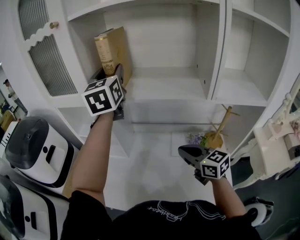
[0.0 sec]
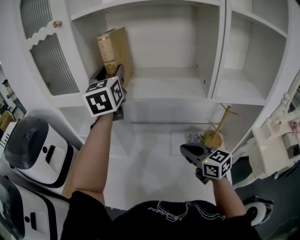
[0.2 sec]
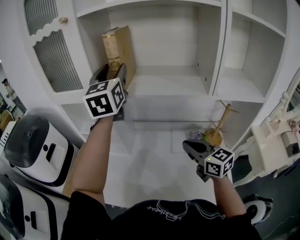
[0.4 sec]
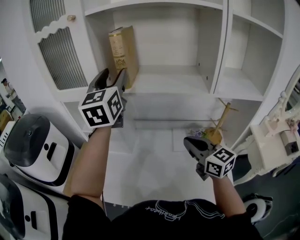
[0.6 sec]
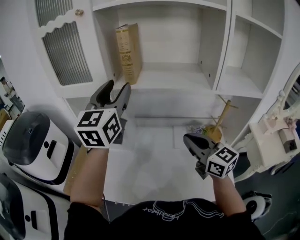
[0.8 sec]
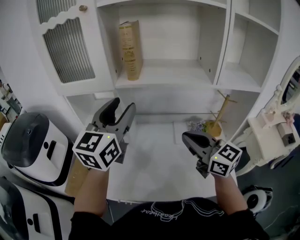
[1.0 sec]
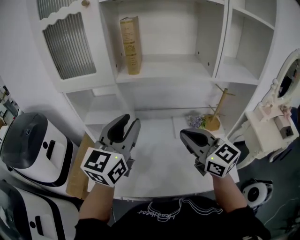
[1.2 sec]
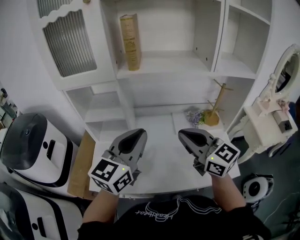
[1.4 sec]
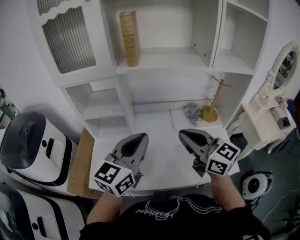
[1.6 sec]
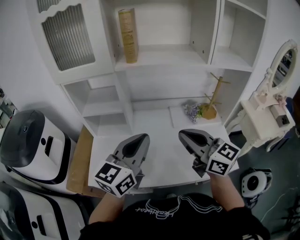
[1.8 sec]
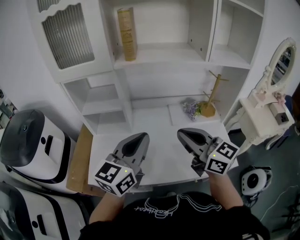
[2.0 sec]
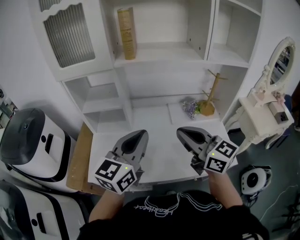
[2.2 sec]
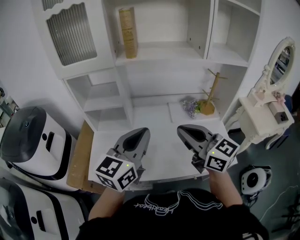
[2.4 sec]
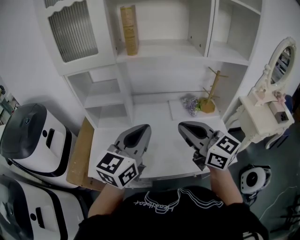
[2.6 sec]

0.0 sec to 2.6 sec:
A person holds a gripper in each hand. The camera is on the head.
0.0 sec to 1.2 sec: The left gripper moves backward and downward, some 25 cm, and changes its angle by approximately 30 degrees. The right gripper is displaced to the left, upward and backward by roughly 15 cm.
1.2 sec to 2.6 sec: The left gripper goes approximately 10 cm backward and downward, and closes up. The right gripper heads backward, covering some 10 cm.

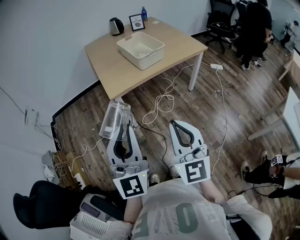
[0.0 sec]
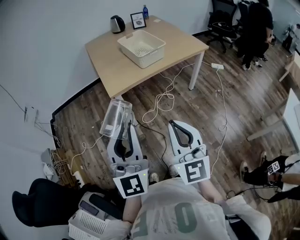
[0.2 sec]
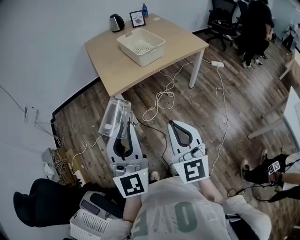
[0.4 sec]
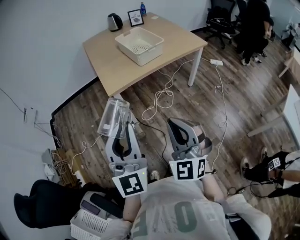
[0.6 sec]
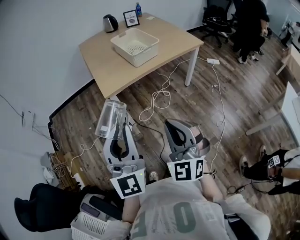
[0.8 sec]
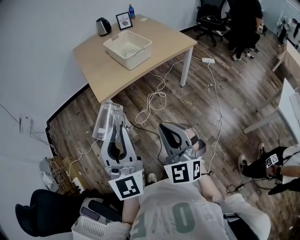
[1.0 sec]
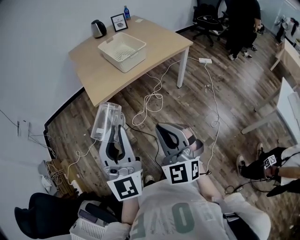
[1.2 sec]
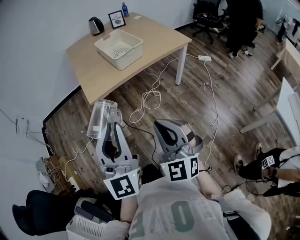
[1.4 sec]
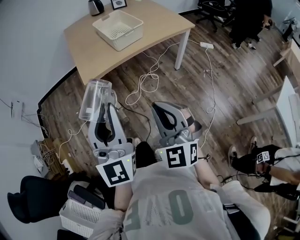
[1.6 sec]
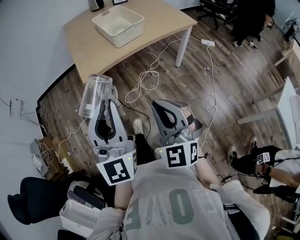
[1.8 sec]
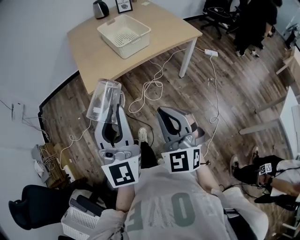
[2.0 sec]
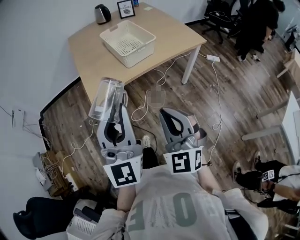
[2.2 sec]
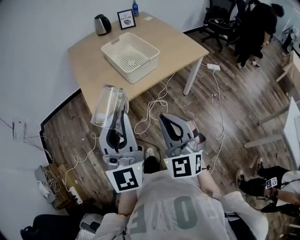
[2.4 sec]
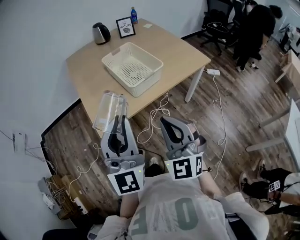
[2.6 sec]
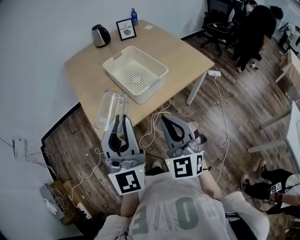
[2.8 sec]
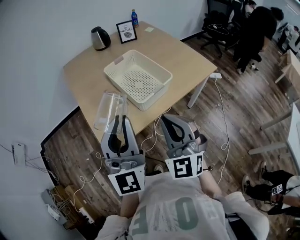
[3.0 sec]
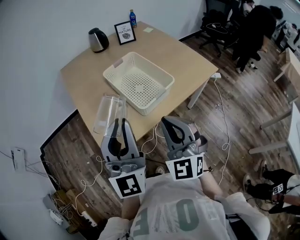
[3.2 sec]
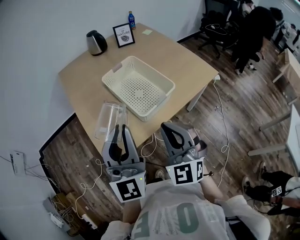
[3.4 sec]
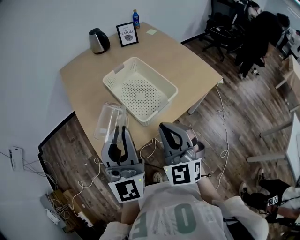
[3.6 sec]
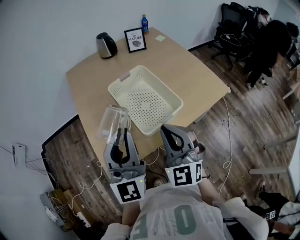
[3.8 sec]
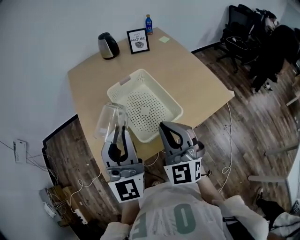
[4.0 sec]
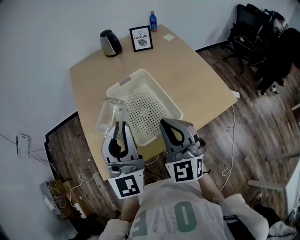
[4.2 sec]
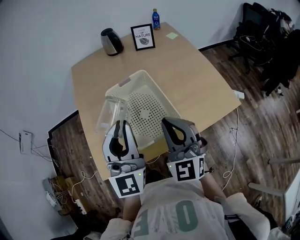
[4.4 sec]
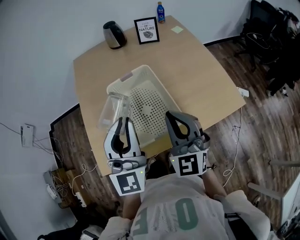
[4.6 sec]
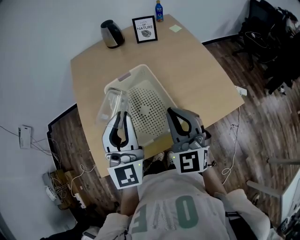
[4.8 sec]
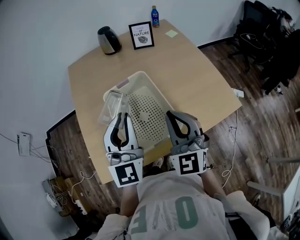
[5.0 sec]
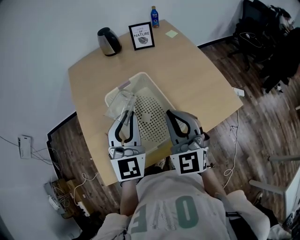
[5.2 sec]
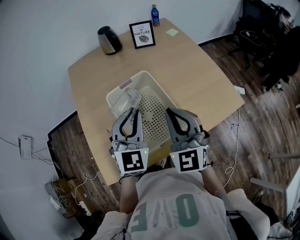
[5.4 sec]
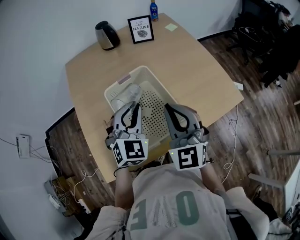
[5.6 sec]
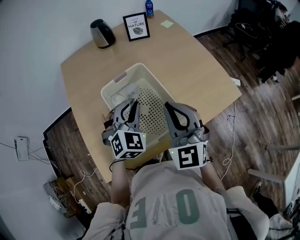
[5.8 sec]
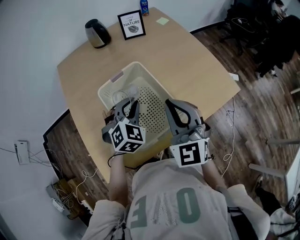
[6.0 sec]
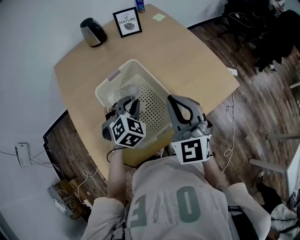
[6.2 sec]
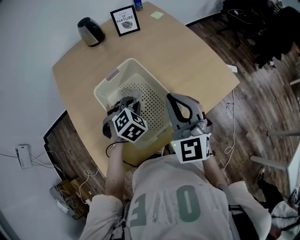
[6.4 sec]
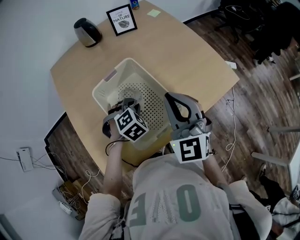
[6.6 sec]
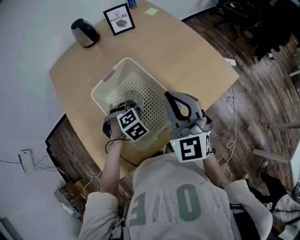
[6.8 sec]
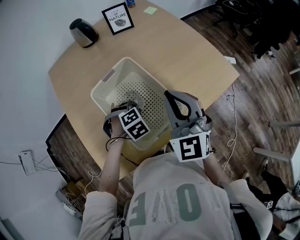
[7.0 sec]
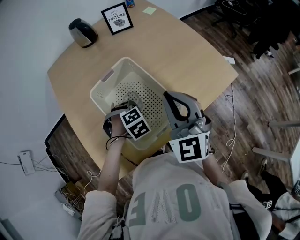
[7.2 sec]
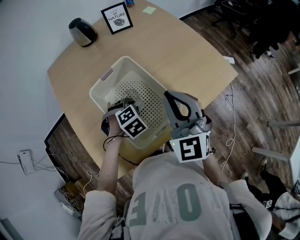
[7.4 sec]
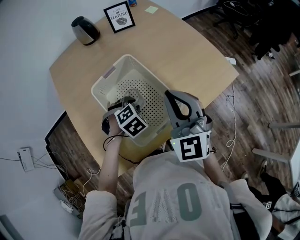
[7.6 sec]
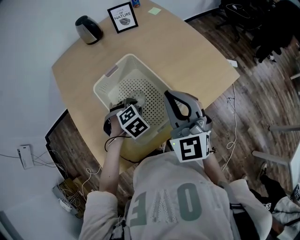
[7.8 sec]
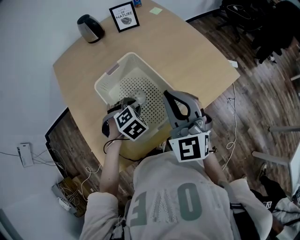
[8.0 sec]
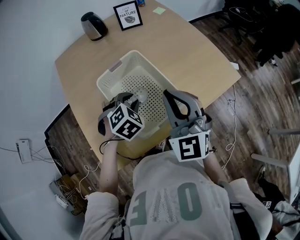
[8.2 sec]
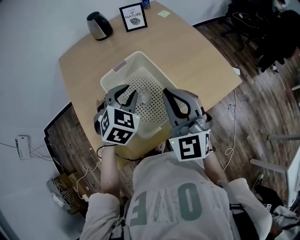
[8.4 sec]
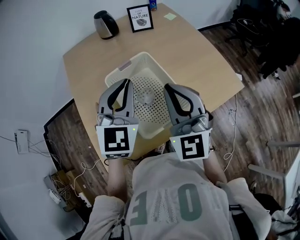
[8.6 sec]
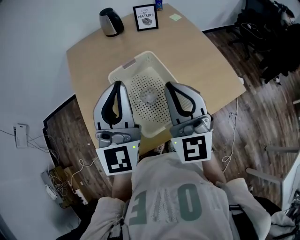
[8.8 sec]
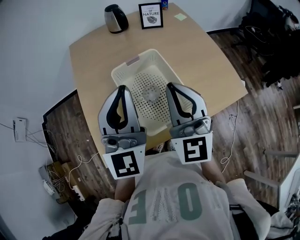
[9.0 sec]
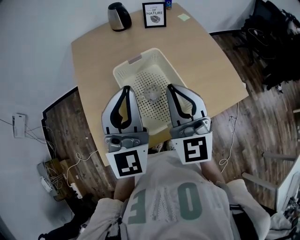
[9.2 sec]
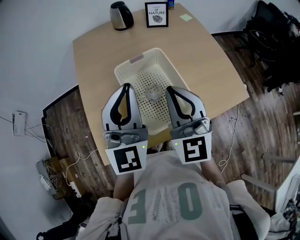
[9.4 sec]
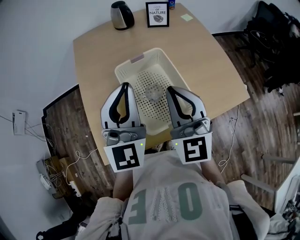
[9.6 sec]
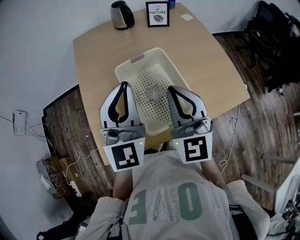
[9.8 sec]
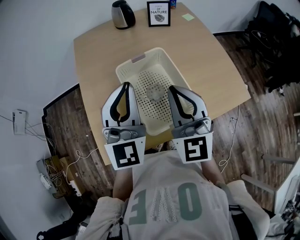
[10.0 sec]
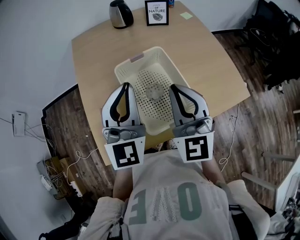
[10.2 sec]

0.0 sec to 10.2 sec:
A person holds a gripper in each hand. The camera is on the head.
0.0 sec to 1.4 sec: The two grippers go about 5 cm to the right. The right gripper turns by about 20 degrees.
1.4 sec to 3.0 sec: The grippers both shift forward by roughly 40 cm.
3.0 sec to 4.4 sec: Both grippers travel together forward, about 25 cm.
4.4 sec to 5.8 sec: The right gripper goes some 5 cm forward. The left gripper is displaced downward and forward by some 20 cm, and points its fingers about 40 degrees further downward.
5.8 sec to 7.2 sec: The left gripper moves downward, some 15 cm, and angles its fingers downward, by some 50 degrees.
7.2 sec to 8.8 sec: The right gripper is displaced upward and to the left by approximately 10 cm. The left gripper goes approximately 35 cm upward, and tips its fingers upward by roughly 90 degrees.
8.8 sec to 10.2 sec: The left gripper moves roughly 5 cm.

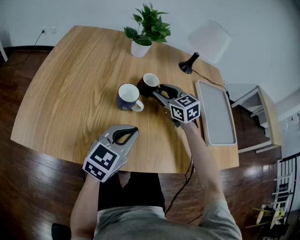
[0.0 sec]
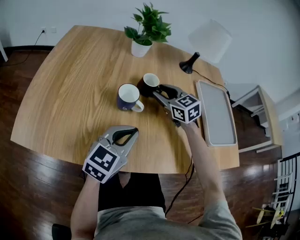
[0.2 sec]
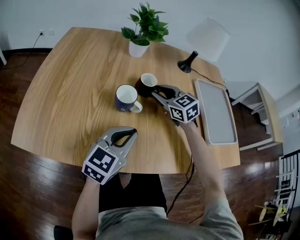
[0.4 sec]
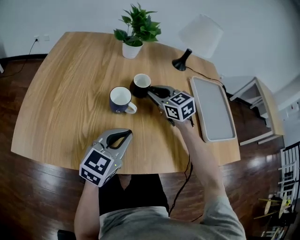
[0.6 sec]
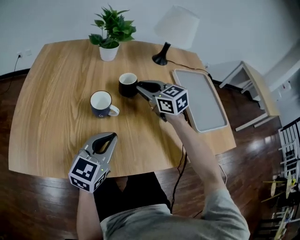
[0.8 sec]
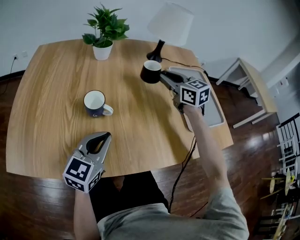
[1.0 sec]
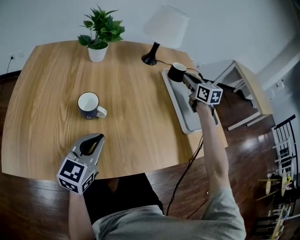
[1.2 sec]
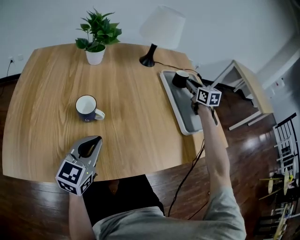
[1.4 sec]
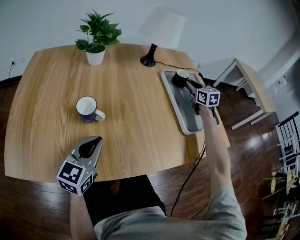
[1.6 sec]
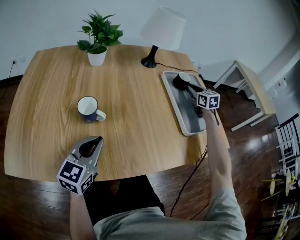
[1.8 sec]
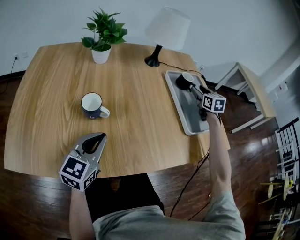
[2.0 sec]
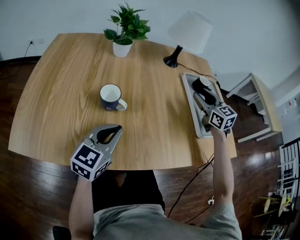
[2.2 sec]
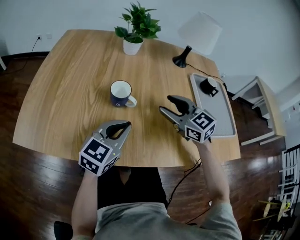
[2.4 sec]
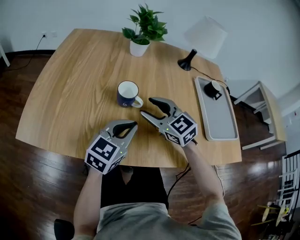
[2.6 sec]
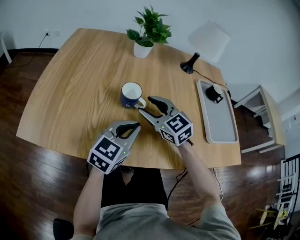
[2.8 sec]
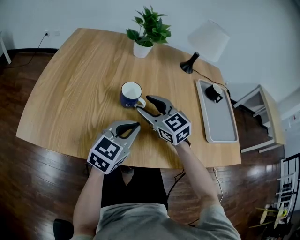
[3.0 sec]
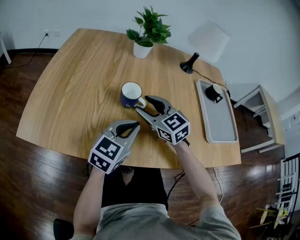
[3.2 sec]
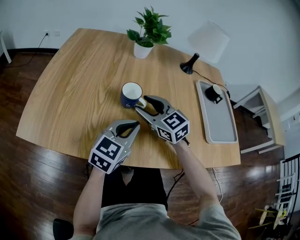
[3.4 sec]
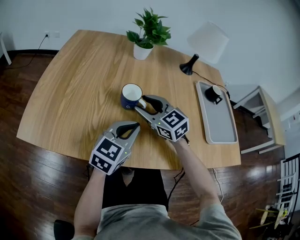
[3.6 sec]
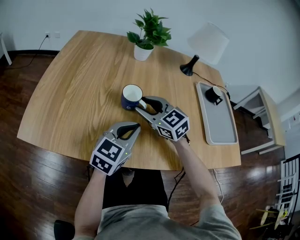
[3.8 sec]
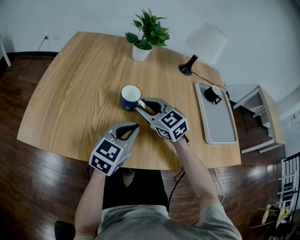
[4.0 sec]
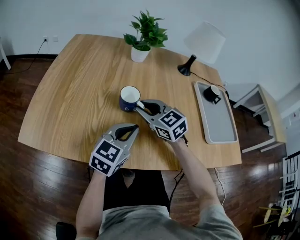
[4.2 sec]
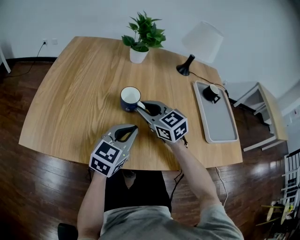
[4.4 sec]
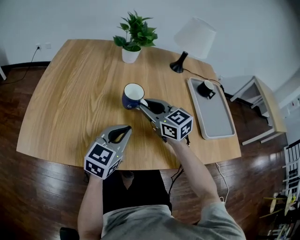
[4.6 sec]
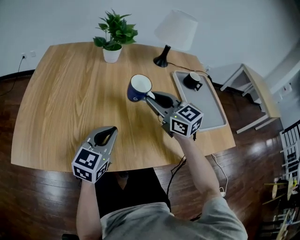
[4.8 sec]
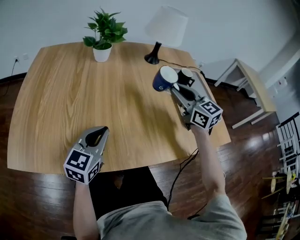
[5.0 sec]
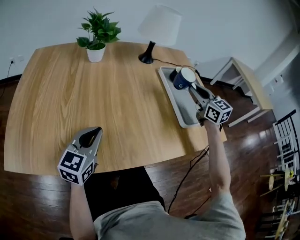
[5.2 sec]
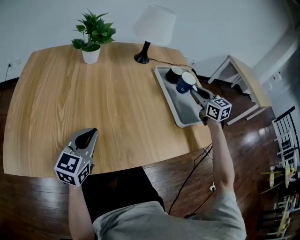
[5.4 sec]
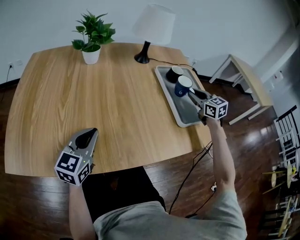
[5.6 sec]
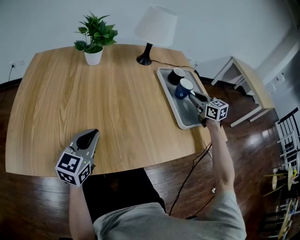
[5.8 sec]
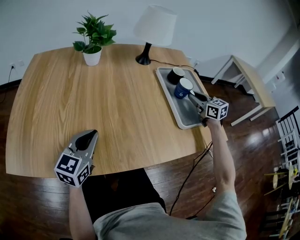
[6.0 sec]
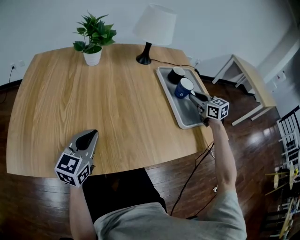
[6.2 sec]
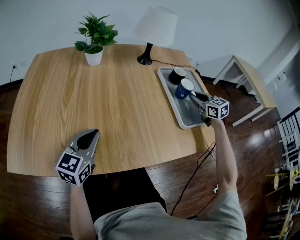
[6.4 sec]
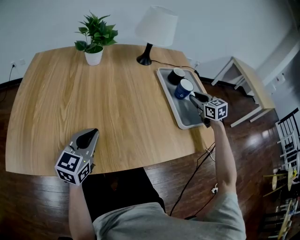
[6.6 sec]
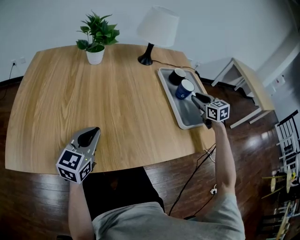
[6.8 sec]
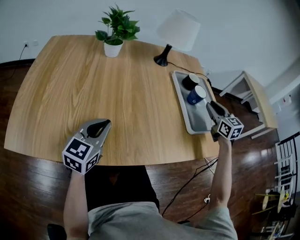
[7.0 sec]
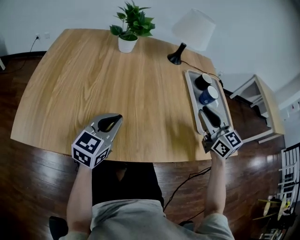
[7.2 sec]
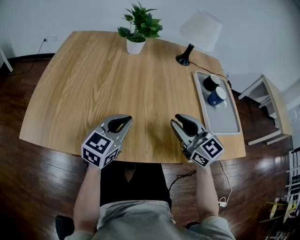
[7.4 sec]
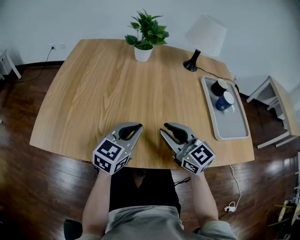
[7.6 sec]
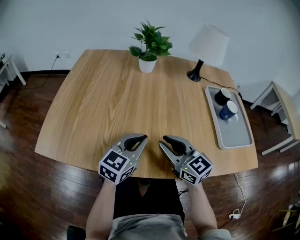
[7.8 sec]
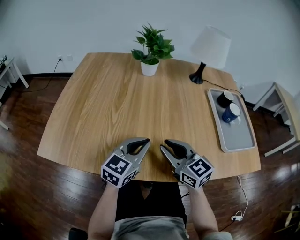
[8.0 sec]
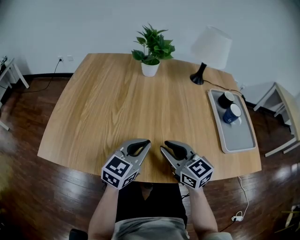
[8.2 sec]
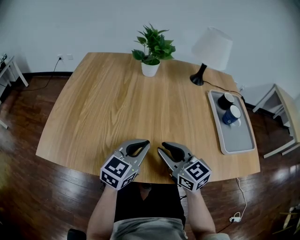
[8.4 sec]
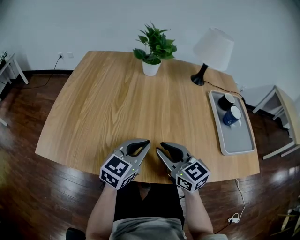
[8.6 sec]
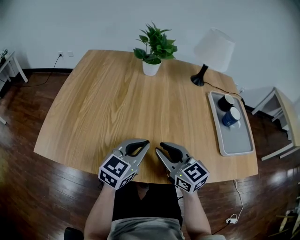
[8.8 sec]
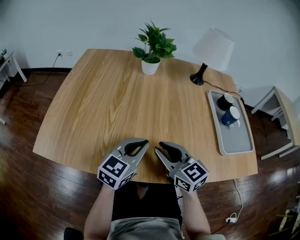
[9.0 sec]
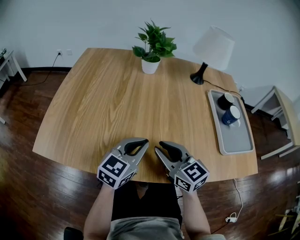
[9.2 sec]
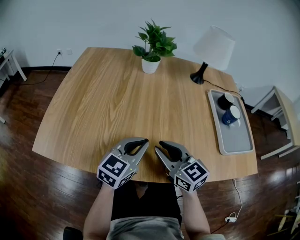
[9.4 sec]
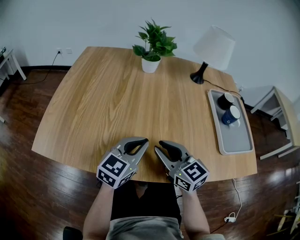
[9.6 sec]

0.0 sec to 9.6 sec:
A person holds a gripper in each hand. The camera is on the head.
0.0 sec to 1.6 sec: The right gripper is displaced to the right by some 35 cm, turns by approximately 30 degrees, and closes up.
1.6 sec to 3.2 sec: The right gripper heads to the left and backward, covering approximately 50 cm, swivels roughly 40 degrees, and opens.
3.2 sec to 4.8 sec: The right gripper heads to the right and upward, covering roughly 15 cm, and closes up.
4.8 sec to 6.4 sec: The right gripper shifts roughly 35 cm to the right, and turns by about 20 degrees.
6.4 sec to 8.0 sec: The right gripper goes approximately 40 cm to the left and backward, and turns by approximately 30 degrees.
8.0 sec to 9.6 sec: The grippers make only small movements.

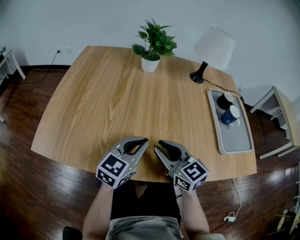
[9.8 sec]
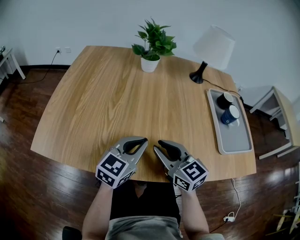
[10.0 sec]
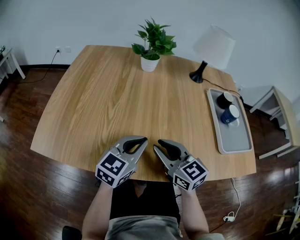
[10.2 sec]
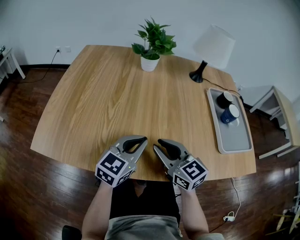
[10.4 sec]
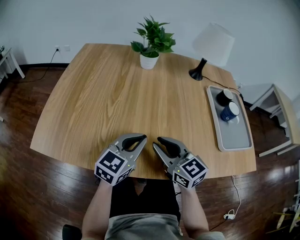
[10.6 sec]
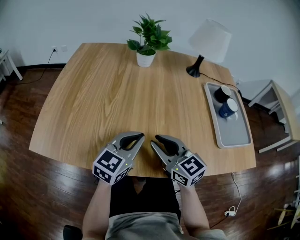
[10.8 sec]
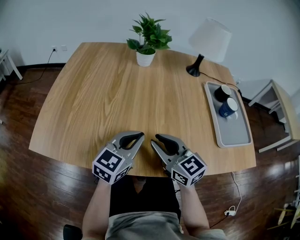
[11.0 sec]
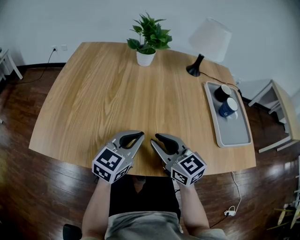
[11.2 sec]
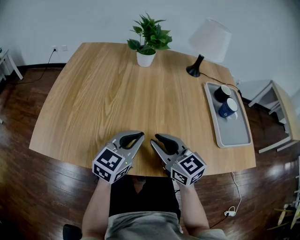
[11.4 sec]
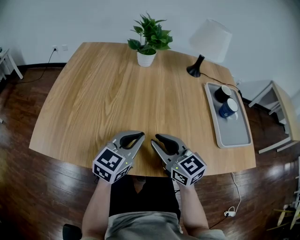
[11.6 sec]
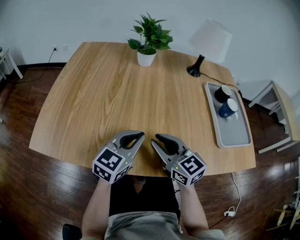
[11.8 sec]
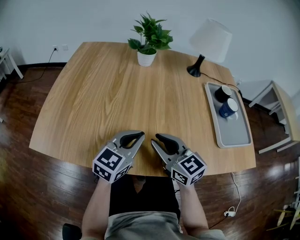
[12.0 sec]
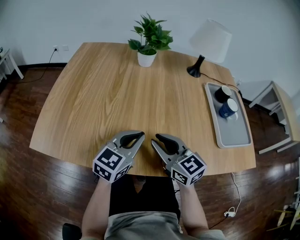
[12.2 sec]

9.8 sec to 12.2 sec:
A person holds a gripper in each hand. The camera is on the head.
9.8 sec to 12.2 sec: Neither gripper changes place.
